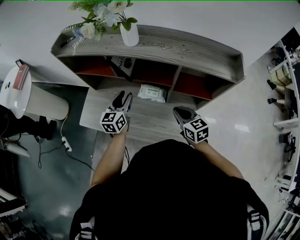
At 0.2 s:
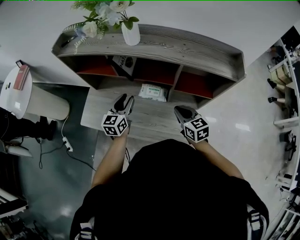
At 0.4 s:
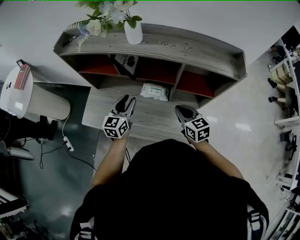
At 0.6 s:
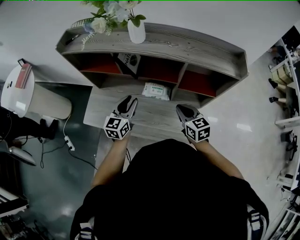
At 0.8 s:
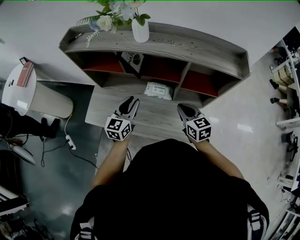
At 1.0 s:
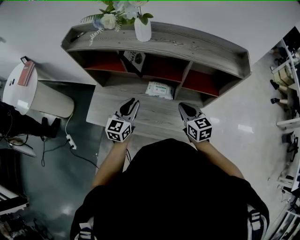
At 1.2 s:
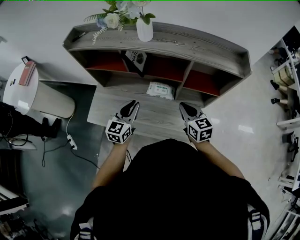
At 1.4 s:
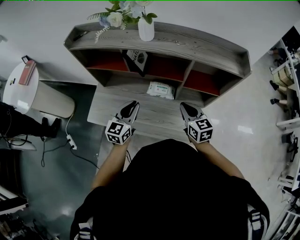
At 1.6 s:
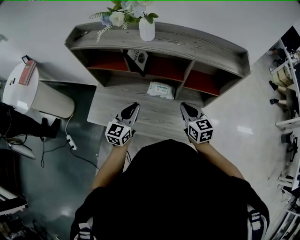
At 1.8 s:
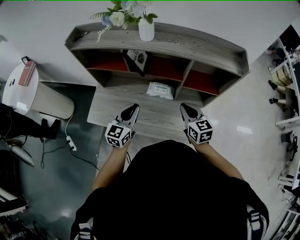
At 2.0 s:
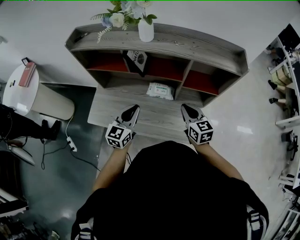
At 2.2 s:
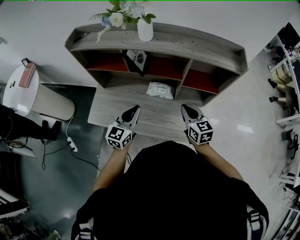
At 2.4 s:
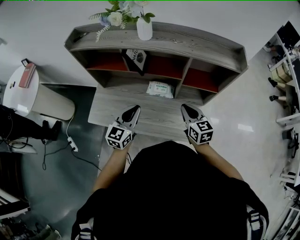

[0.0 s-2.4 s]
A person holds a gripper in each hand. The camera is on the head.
0.0 to 1.2 s: The left gripper moves backward, about 10 cm.
1.2 to 2.4 s: The grippers stay close to where they were, moving slightly.

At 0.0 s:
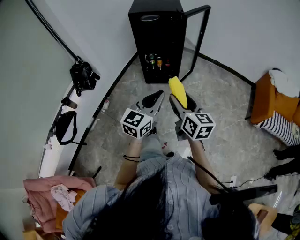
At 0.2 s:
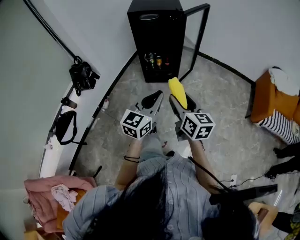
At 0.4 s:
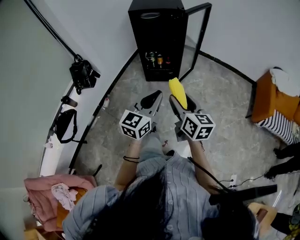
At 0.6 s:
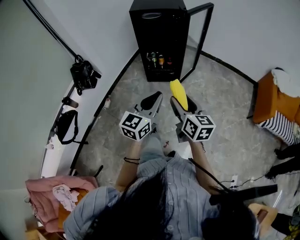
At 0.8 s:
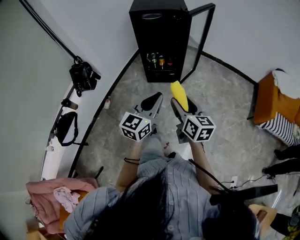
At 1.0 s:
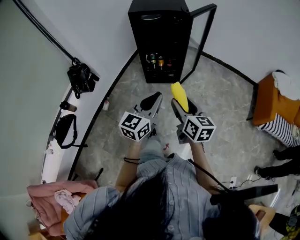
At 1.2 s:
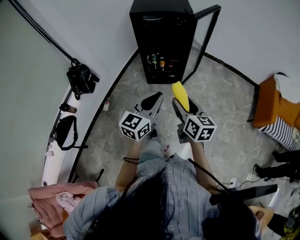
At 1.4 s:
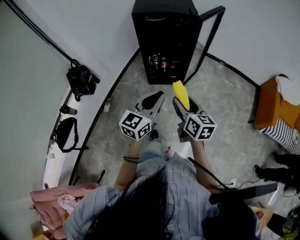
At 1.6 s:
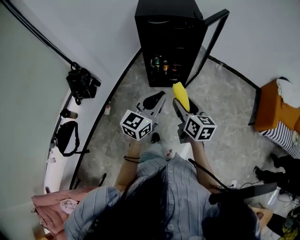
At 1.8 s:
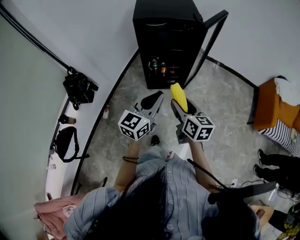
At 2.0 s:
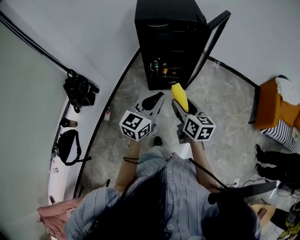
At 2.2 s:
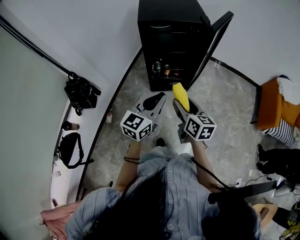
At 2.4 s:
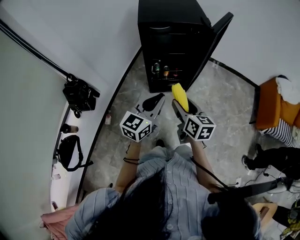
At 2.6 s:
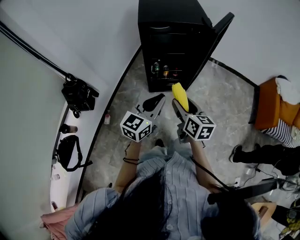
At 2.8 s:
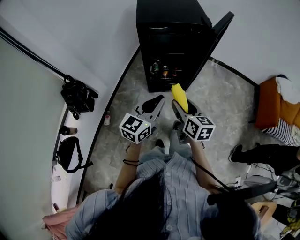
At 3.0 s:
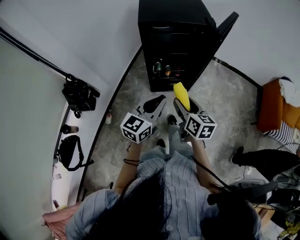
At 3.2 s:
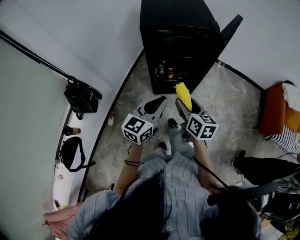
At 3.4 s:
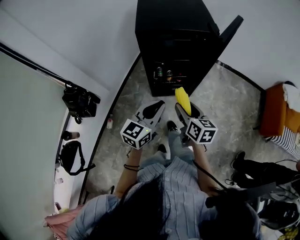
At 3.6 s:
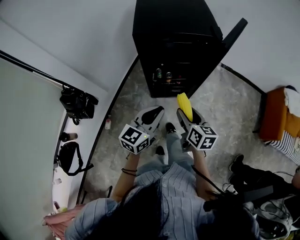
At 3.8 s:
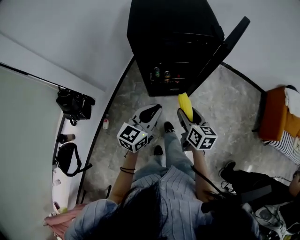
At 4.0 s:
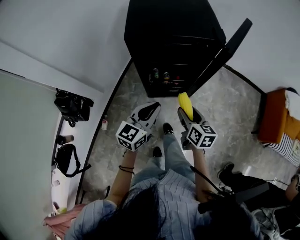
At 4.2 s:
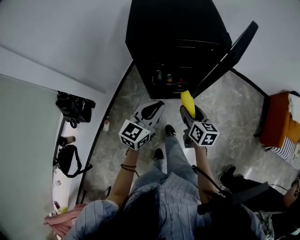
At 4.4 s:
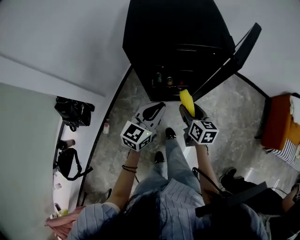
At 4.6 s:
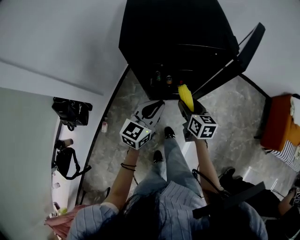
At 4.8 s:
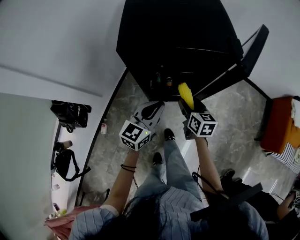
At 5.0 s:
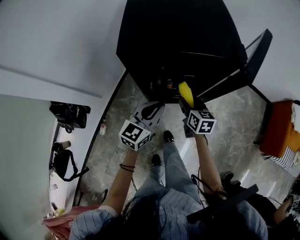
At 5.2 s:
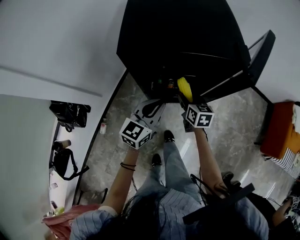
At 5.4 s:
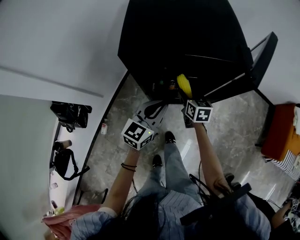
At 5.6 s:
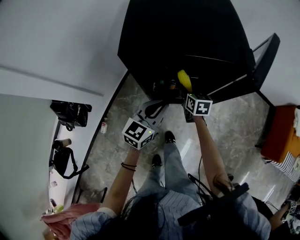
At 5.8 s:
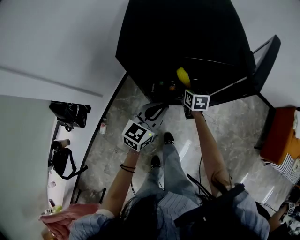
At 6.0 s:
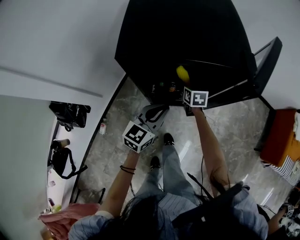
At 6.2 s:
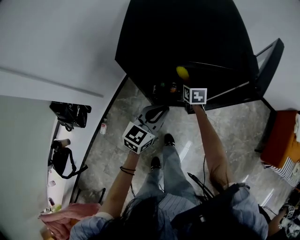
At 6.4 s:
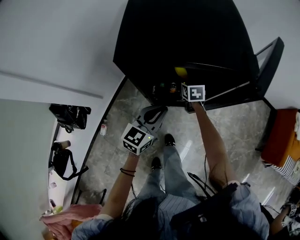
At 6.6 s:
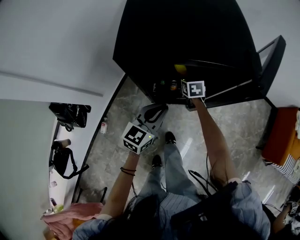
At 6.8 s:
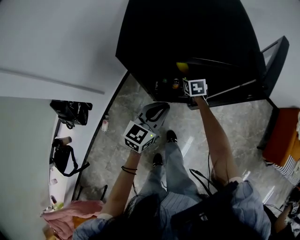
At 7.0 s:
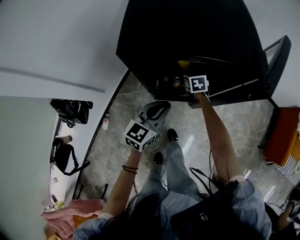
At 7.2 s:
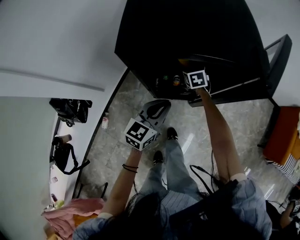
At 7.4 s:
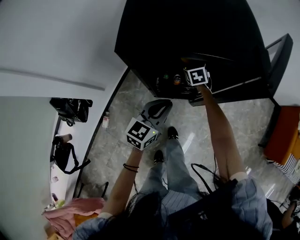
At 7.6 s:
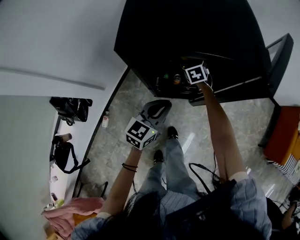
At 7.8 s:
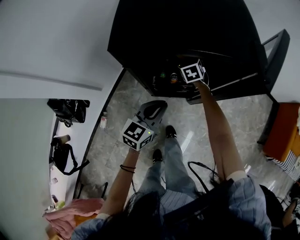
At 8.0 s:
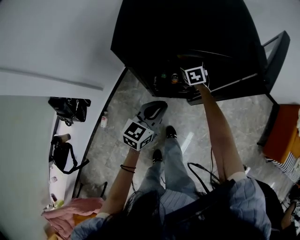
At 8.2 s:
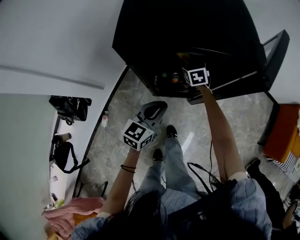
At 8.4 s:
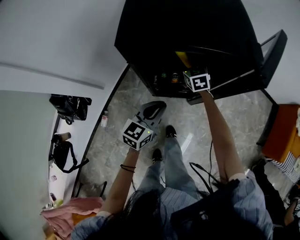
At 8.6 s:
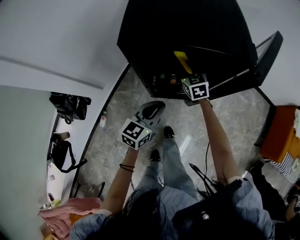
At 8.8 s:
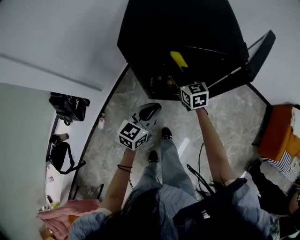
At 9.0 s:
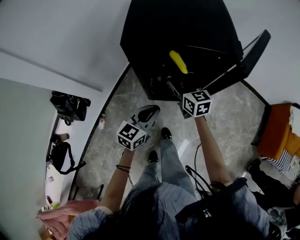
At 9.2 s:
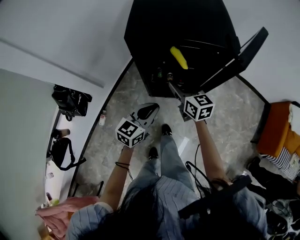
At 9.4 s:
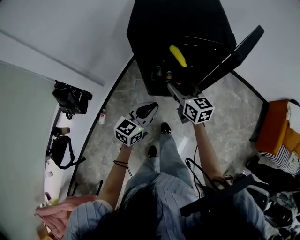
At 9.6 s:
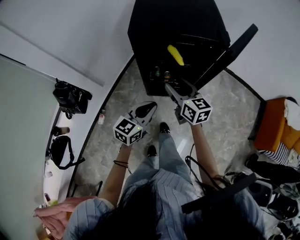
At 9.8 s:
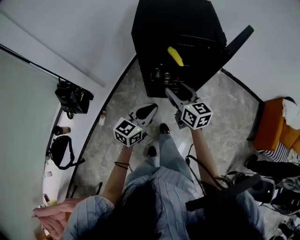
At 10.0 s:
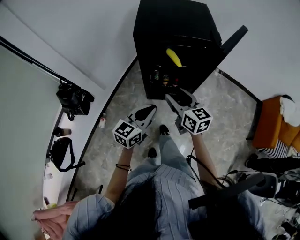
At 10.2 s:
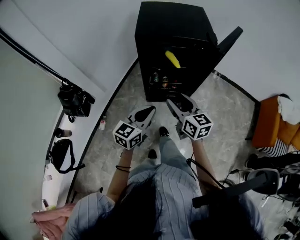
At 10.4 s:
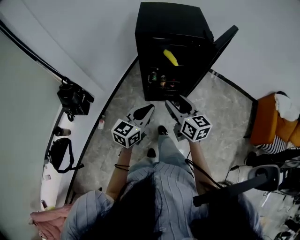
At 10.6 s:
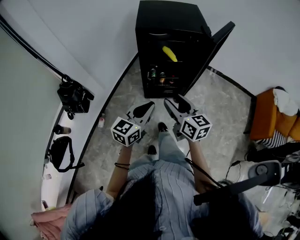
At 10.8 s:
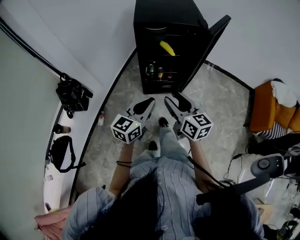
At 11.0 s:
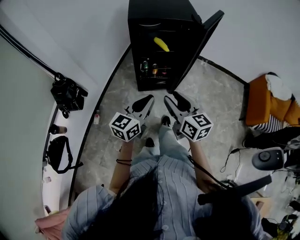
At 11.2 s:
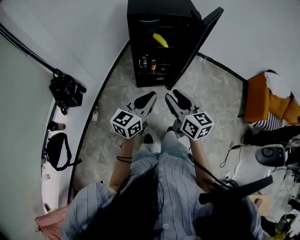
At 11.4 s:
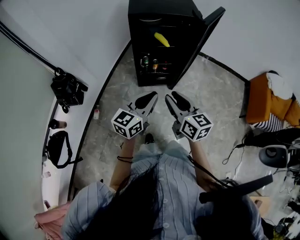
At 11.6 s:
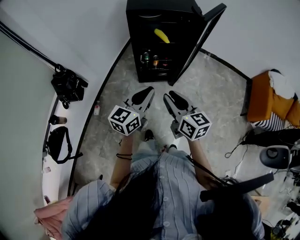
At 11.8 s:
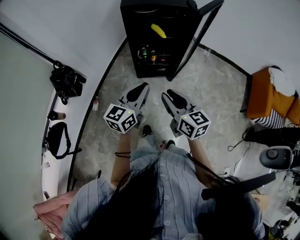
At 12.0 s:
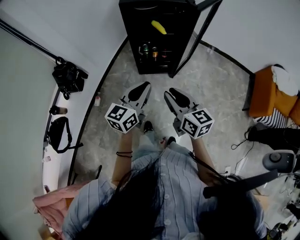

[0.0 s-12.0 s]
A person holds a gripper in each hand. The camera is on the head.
0.0 to 1.6 s: The two grippers go roughly 20 cm forward and to the left.
1.6 to 3.0 s: The grippers both shift forward and to the left by roughly 15 cm.
3.0 to 4.4 s: Both grippers travel together forward and downward, some 20 cm.
4.4 to 6.0 s: The right gripper shifts about 25 cm forward and downward, while the left gripper heads forward and downward, covering some 10 cm.
6.0 to 7.6 s: The right gripper goes roughly 5 cm forward, and swivels about 30 degrees.
7.6 to 9.0 s: The right gripper heads backward and upward, covering approximately 25 cm, and swivels about 30 degrees. The left gripper is displaced backward by about 5 cm.
9.0 to 10.4 s: Both grippers move backward and upward, approximately 25 cm.
10.4 to 12.0 s: The left gripper heads backward and to the right, covering approximately 10 cm, while the right gripper moves backward, about 15 cm, and closes.

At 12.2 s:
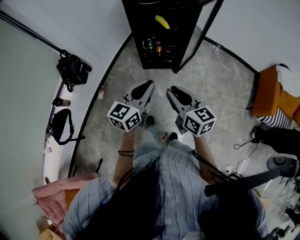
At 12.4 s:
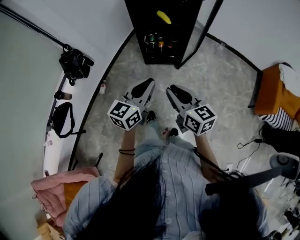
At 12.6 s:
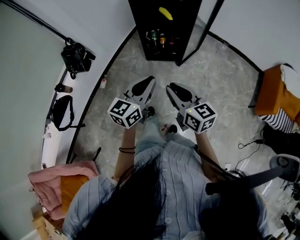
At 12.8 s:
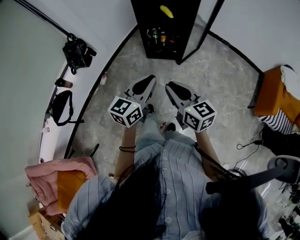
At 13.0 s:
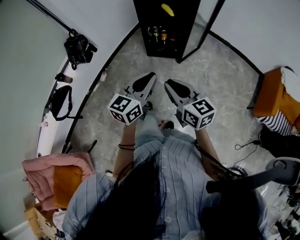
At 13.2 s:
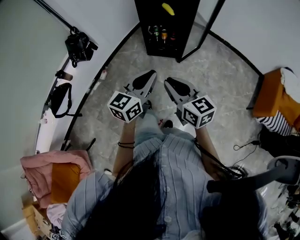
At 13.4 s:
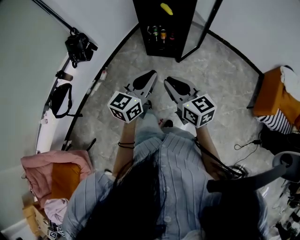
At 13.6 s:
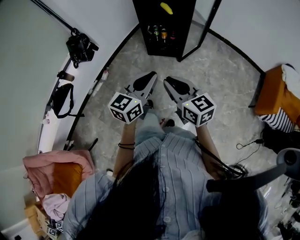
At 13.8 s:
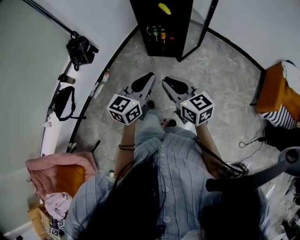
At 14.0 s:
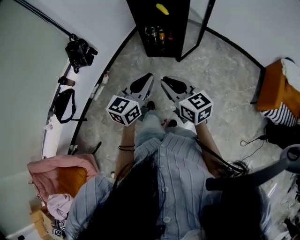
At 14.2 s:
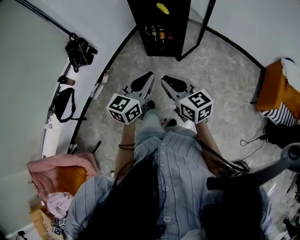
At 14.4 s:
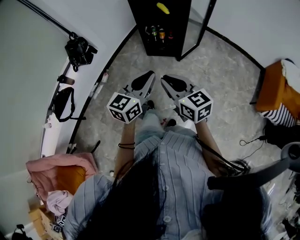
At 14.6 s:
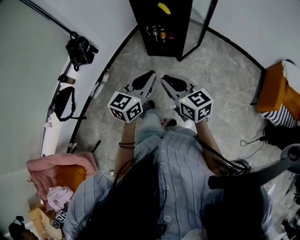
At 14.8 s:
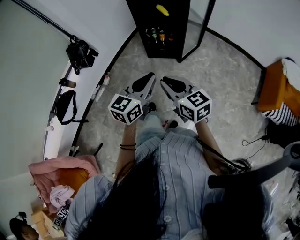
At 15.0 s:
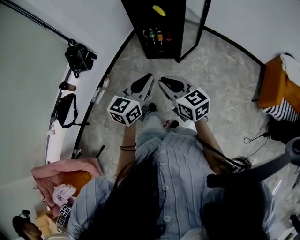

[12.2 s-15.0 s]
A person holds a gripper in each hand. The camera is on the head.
12.2 to 13.6 s: The left gripper heads backward and to the right, covering some 15 cm. The right gripper heads backward, covering roughly 15 cm.
13.6 to 15.0 s: Both grippers stay put.

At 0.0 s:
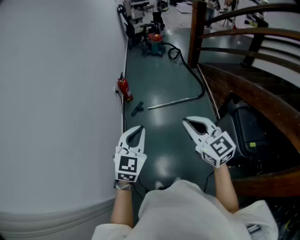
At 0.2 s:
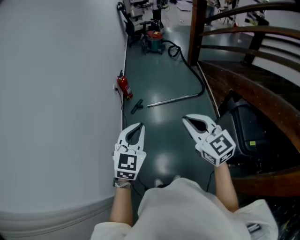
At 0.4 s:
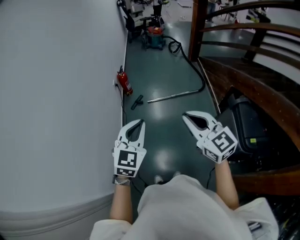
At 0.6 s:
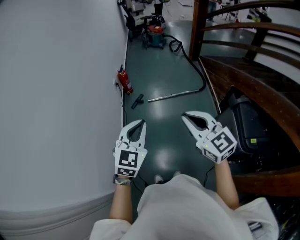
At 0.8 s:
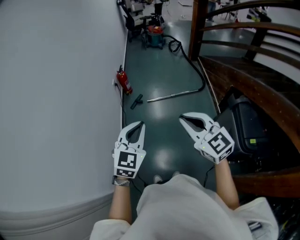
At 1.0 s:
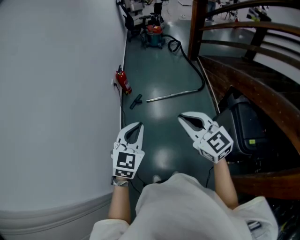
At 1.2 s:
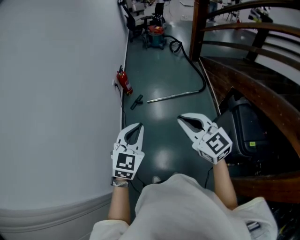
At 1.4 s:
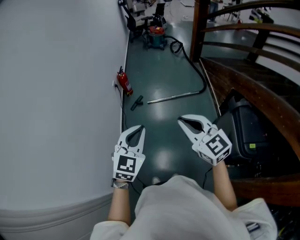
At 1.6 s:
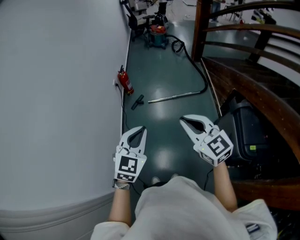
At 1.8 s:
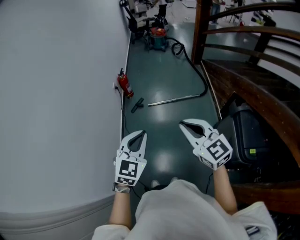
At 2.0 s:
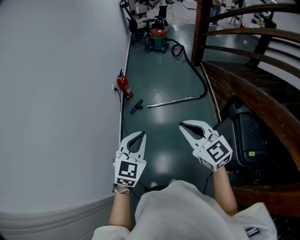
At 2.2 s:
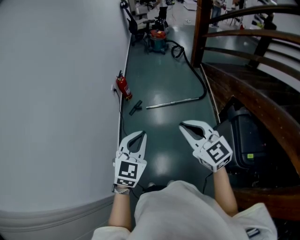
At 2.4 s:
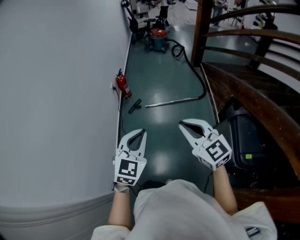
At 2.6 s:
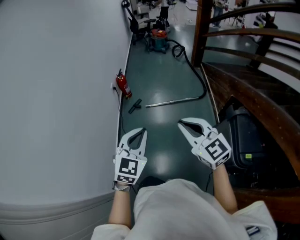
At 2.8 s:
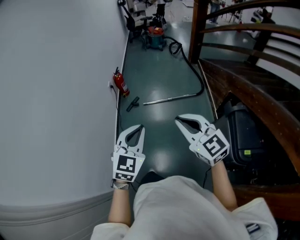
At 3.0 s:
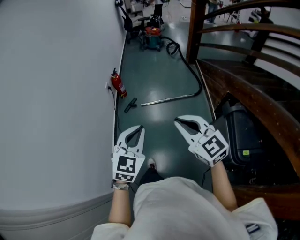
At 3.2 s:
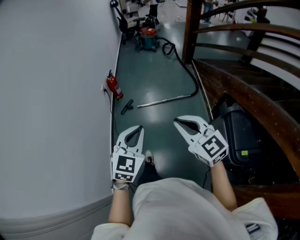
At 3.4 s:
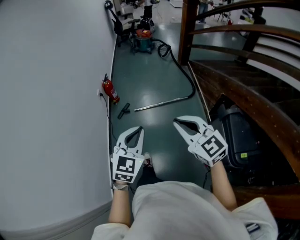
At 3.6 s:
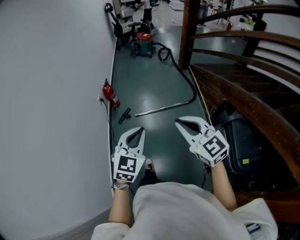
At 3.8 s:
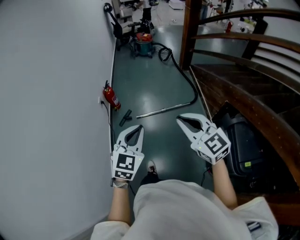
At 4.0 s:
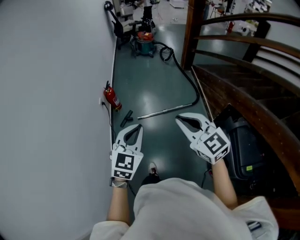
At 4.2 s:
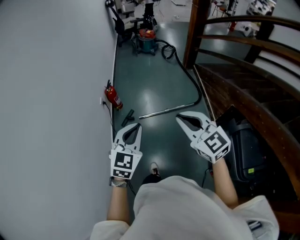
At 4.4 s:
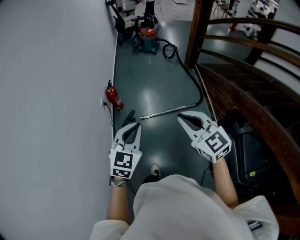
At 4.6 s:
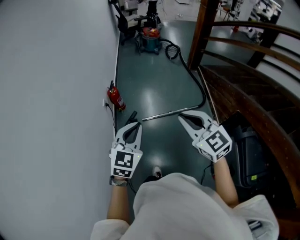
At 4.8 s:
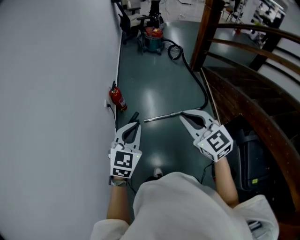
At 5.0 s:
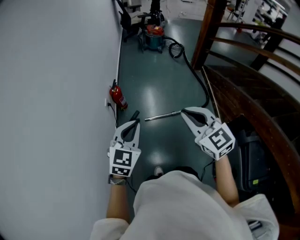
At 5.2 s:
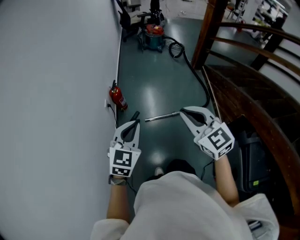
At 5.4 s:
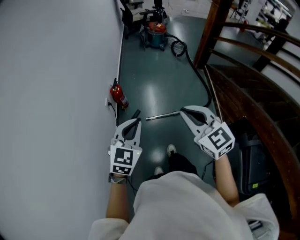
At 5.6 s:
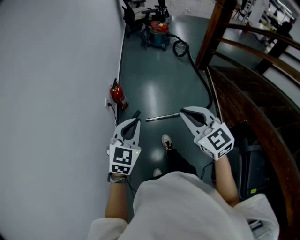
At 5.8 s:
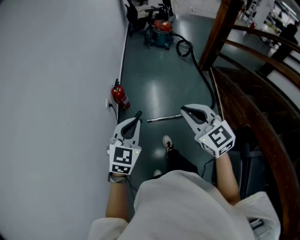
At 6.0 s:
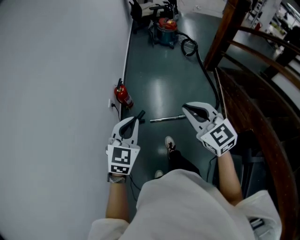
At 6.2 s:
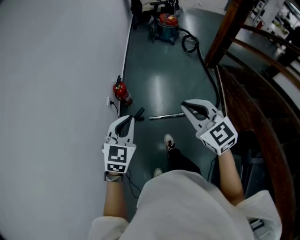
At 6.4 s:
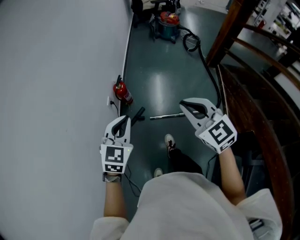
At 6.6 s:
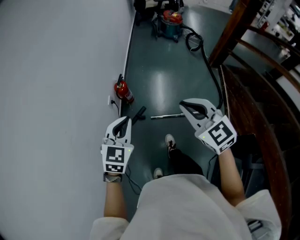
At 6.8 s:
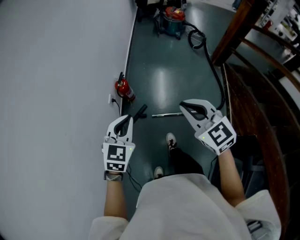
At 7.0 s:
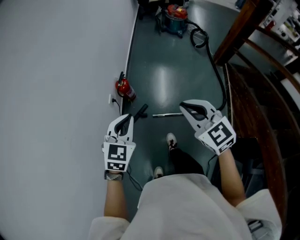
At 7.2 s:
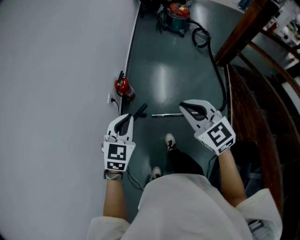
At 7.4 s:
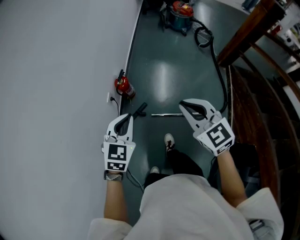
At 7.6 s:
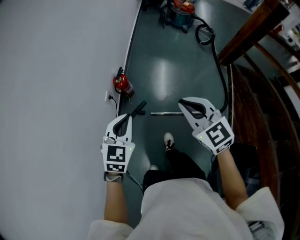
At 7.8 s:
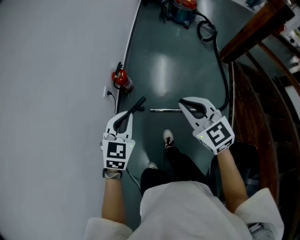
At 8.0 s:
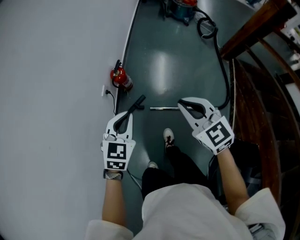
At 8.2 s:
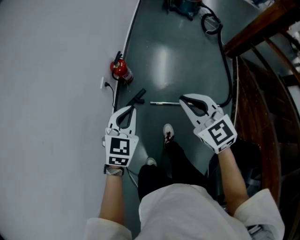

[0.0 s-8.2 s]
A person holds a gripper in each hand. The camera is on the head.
0.0 to 1.6 s: The right gripper changes place by some 5 cm, while the left gripper shifts by roughly 5 cm.
1.6 to 3.2 s: Both grippers travel together to the right, some 5 cm.
3.2 to 5.0 s: The grippers both shift forward by approximately 35 cm.
5.0 to 6.6 s: The two grippers go some 20 cm forward.
6.6 to 8.2 s: Both grippers travel together downward and forward, about 20 cm.
